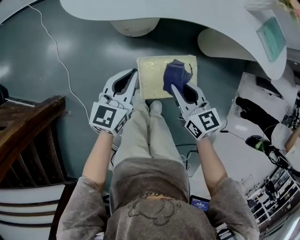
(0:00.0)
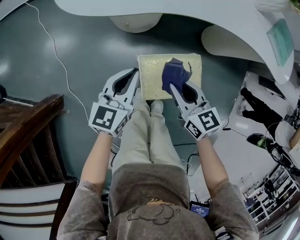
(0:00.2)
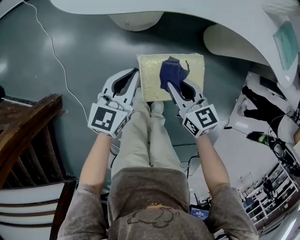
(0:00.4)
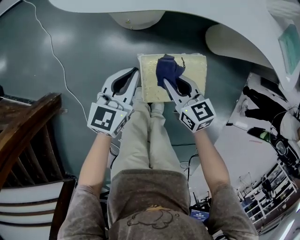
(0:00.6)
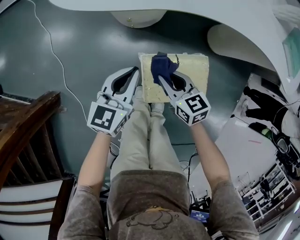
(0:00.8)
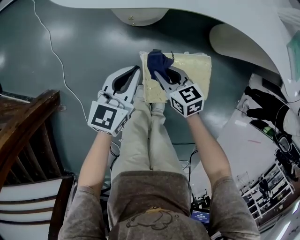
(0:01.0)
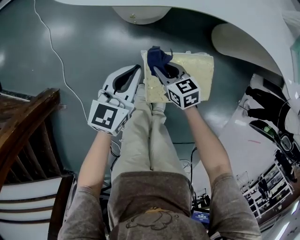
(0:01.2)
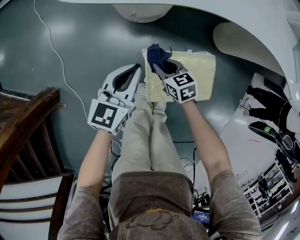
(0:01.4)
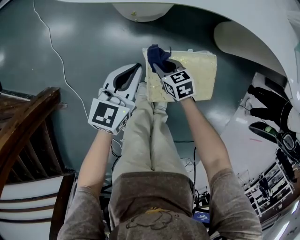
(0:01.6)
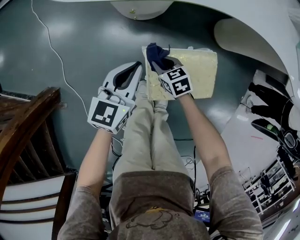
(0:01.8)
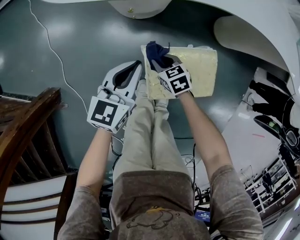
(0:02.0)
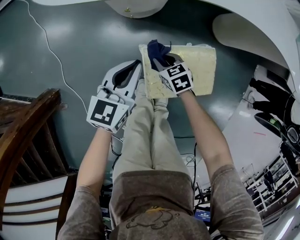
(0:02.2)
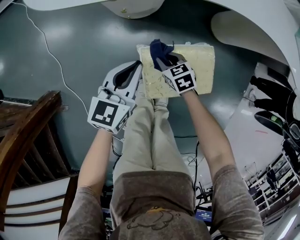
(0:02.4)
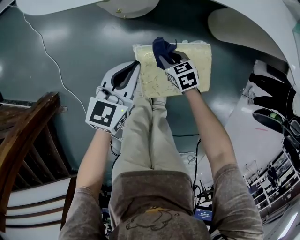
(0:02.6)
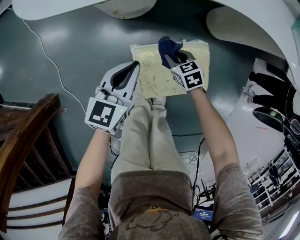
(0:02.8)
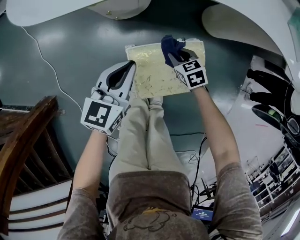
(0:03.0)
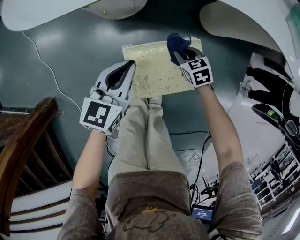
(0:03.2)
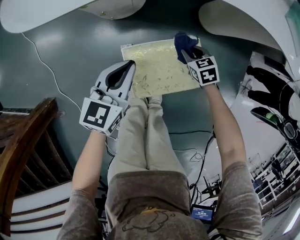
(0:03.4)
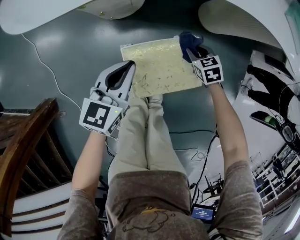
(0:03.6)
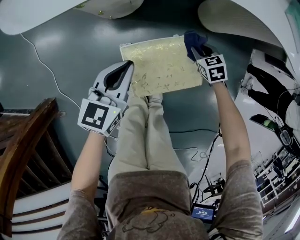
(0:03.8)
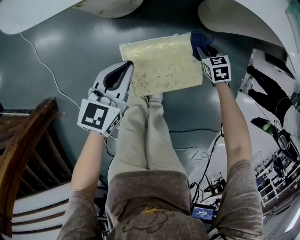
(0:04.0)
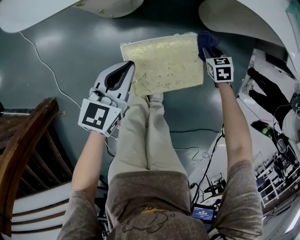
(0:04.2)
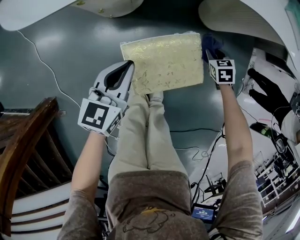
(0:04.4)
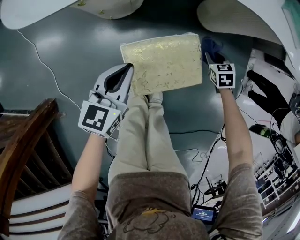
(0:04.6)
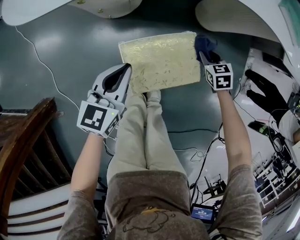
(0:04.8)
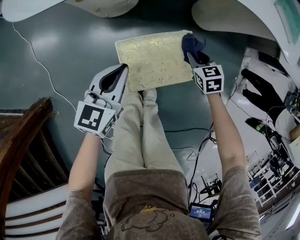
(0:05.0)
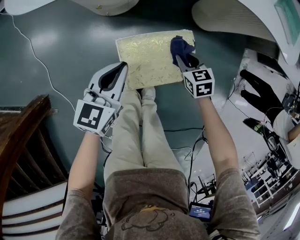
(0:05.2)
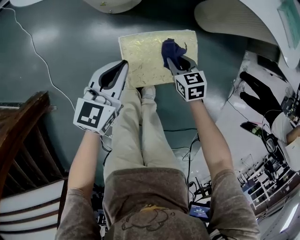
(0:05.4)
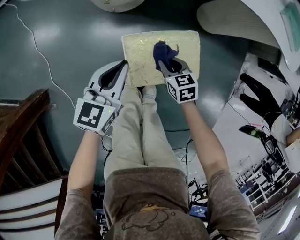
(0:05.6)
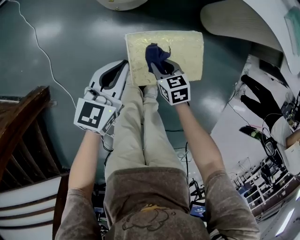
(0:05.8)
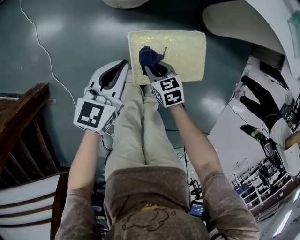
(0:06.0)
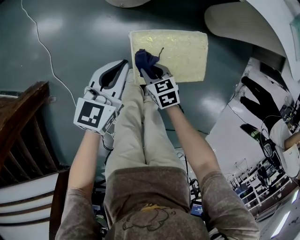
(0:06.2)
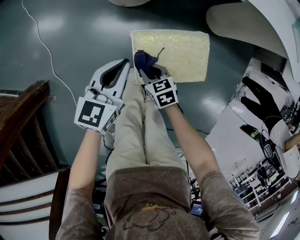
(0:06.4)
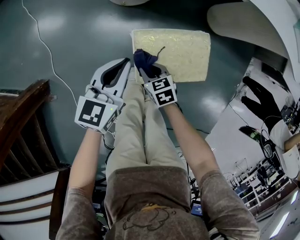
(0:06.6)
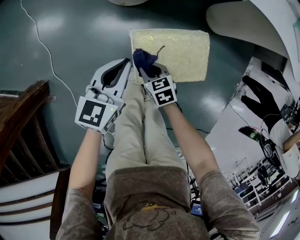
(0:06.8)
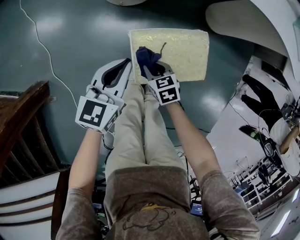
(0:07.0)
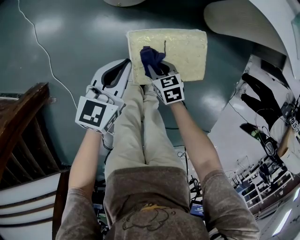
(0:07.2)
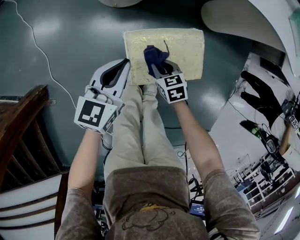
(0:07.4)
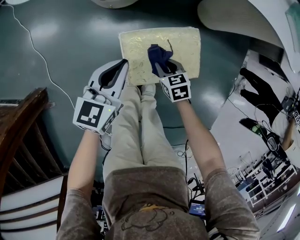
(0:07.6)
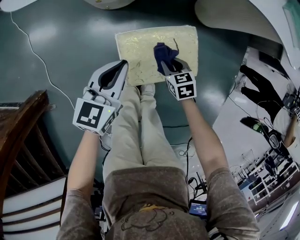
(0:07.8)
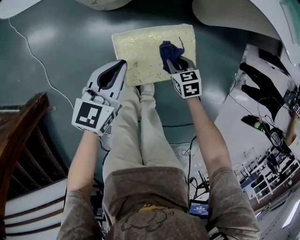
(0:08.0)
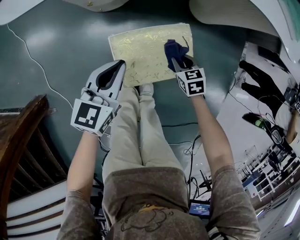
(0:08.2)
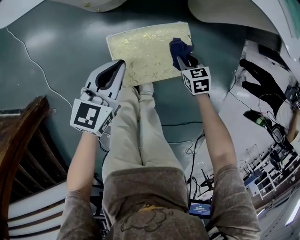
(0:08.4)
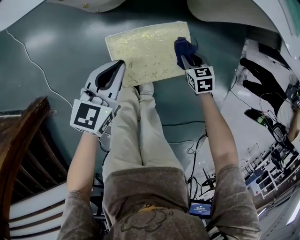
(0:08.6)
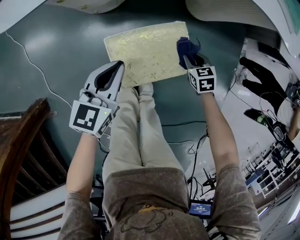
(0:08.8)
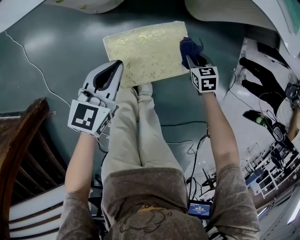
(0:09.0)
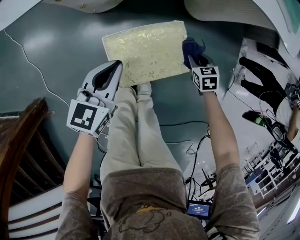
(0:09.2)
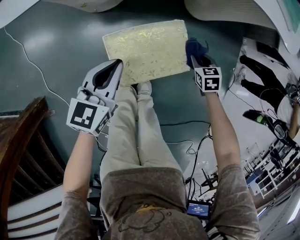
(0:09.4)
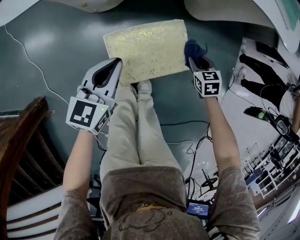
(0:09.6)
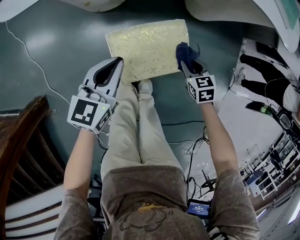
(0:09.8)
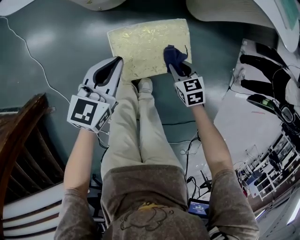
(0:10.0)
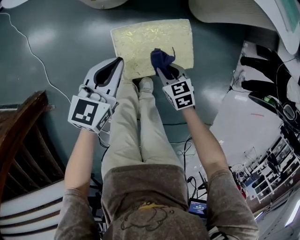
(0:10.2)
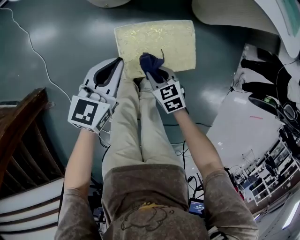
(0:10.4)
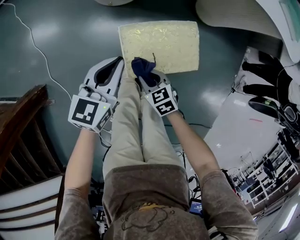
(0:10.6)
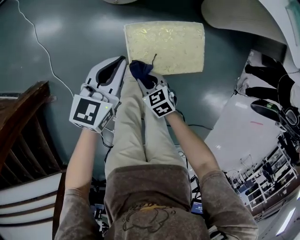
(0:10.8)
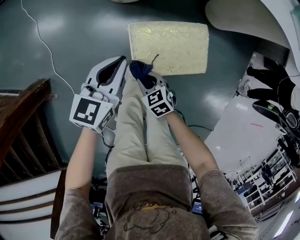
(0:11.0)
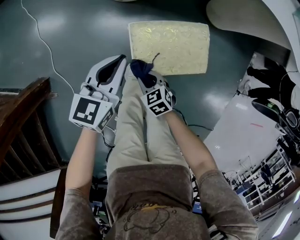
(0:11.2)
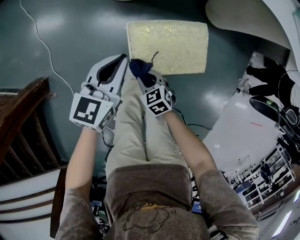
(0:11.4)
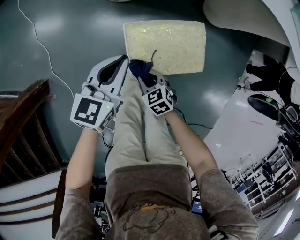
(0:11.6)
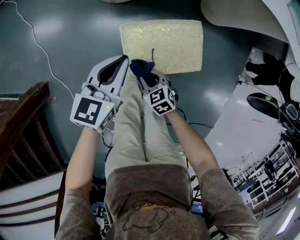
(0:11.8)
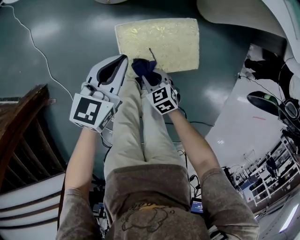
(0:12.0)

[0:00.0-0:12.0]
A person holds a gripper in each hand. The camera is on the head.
0:00.0 to 0:01.6: The left gripper heads downward, covering roughly 15 cm. Meanwhile the right gripper goes approximately 30 cm downward, and rotates some 30 degrees.
0:01.6 to 0:03.0: The right gripper is displaced to the right by approximately 15 cm, while the left gripper shifts some 5 cm to the right.
0:03.0 to 0:04.4: The right gripper goes approximately 20 cm to the right, and turns by some 20 degrees.
0:04.4 to 0:06.0: The left gripper shifts about 5 cm backward, while the right gripper shifts approximately 30 cm to the left and backward, and swivels approximately 30 degrees.
0:06.0 to 0:07.6: The right gripper travels to the right by about 10 cm.
0:07.6 to 0:09.0: The right gripper goes about 20 cm to the right.
0:09.0 to 0:10.4: The right gripper shifts about 25 cm to the left and backward, and changes its angle by some 20 degrees.
0:10.4 to 0:12.0: The right gripper reaches about 10 cm to the left, then returns.

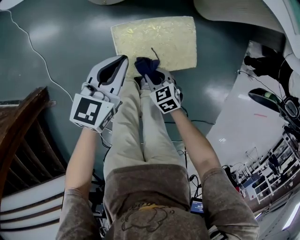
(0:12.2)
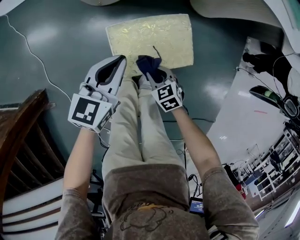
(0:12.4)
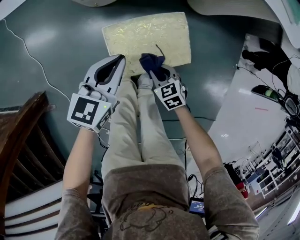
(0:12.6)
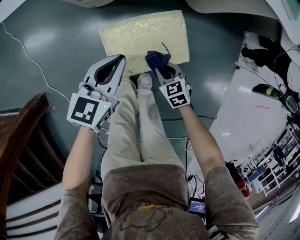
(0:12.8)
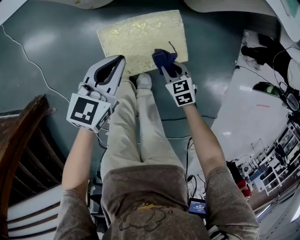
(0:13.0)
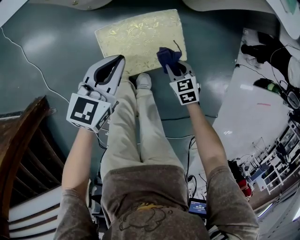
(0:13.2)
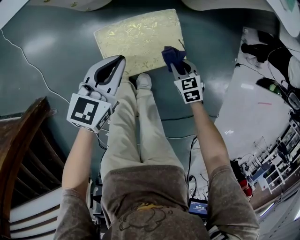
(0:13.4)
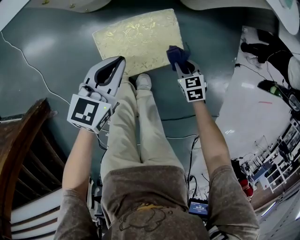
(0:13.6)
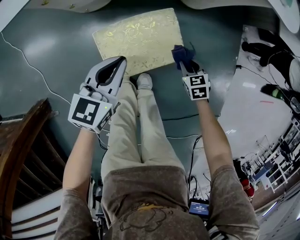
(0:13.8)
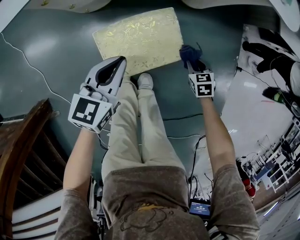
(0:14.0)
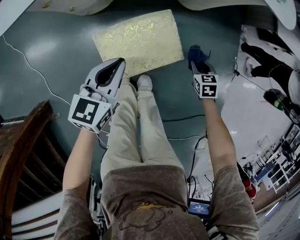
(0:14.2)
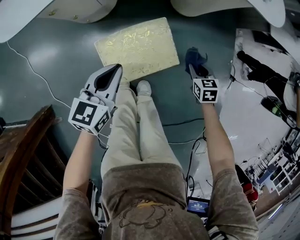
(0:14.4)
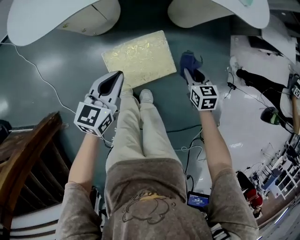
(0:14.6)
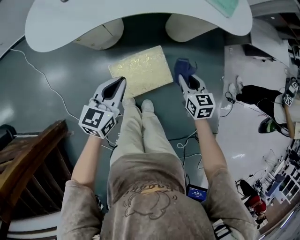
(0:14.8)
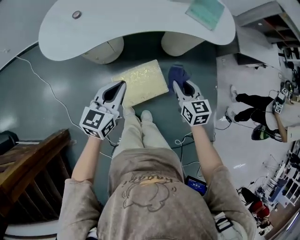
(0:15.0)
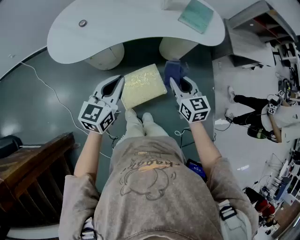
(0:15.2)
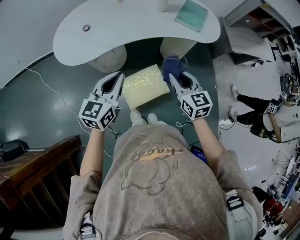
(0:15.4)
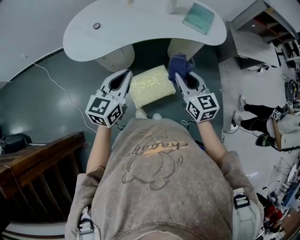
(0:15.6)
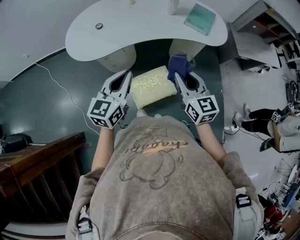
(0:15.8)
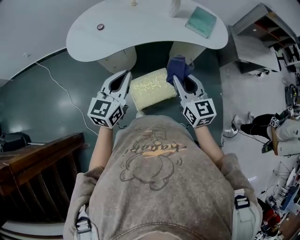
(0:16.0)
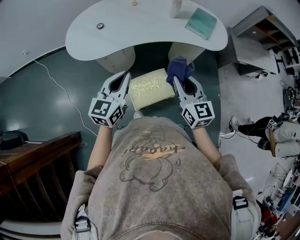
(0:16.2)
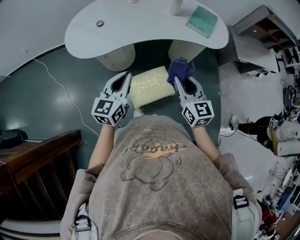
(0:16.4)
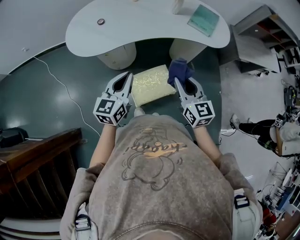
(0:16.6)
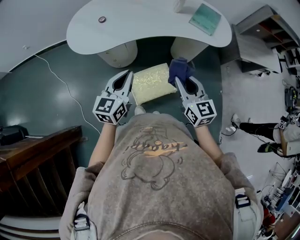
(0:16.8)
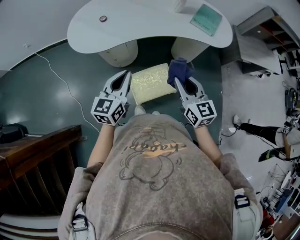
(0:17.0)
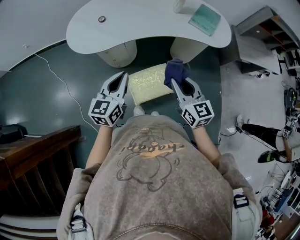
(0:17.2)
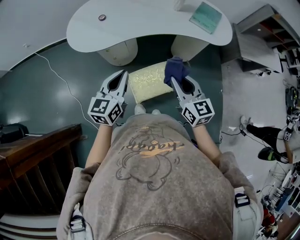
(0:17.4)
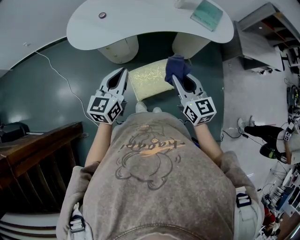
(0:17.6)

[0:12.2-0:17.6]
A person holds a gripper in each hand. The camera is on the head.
0:12.2 to 0:13.6: The left gripper moves to the right, about 5 cm. The right gripper moves to the right, approximately 20 cm.
0:13.6 to 0:15.0: Both grippers travel together upward, some 30 cm. The right gripper rotates some 30 degrees.
0:15.0 to 0:16.2: The right gripper moves upward, about 20 cm, and turns by roughly 20 degrees. Meanwhile the left gripper heads upward, covering about 10 cm.
0:16.2 to 0:17.6: The grippers move only a little.

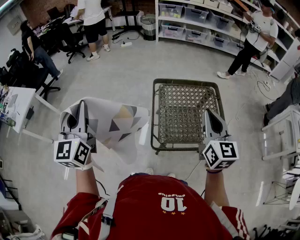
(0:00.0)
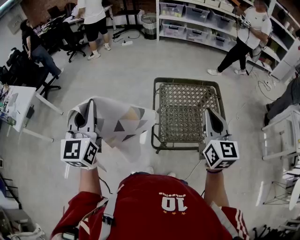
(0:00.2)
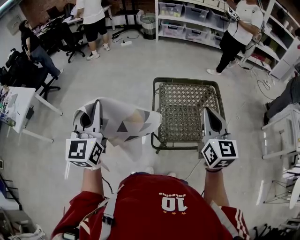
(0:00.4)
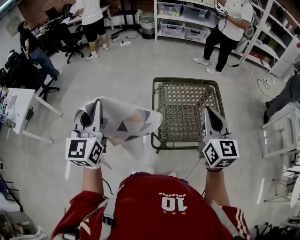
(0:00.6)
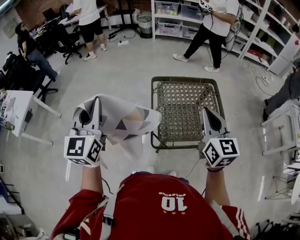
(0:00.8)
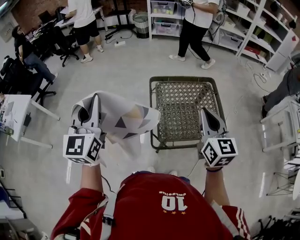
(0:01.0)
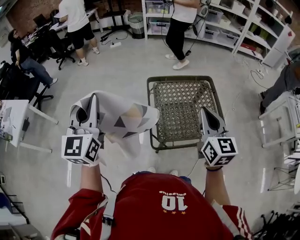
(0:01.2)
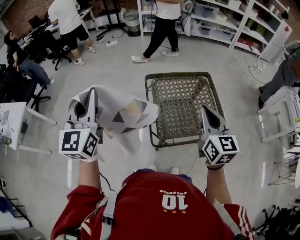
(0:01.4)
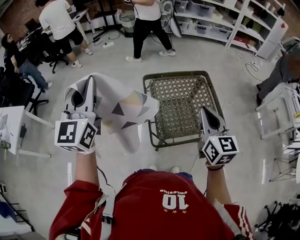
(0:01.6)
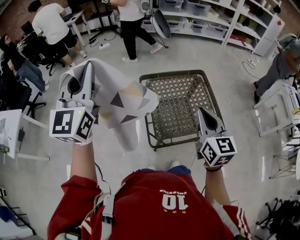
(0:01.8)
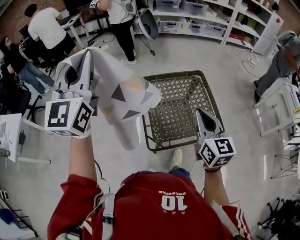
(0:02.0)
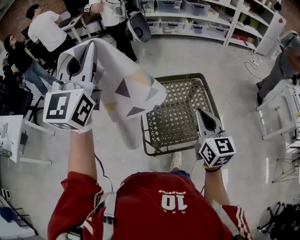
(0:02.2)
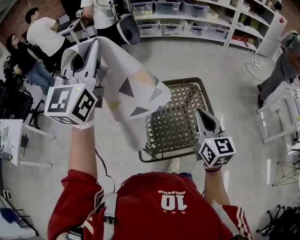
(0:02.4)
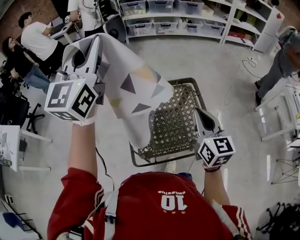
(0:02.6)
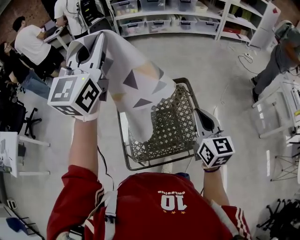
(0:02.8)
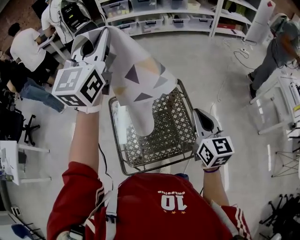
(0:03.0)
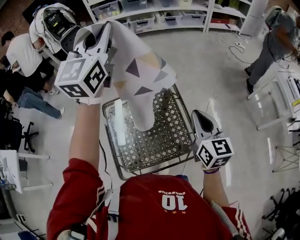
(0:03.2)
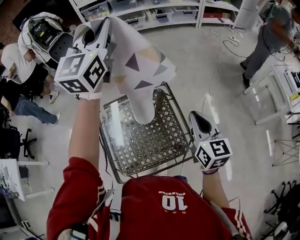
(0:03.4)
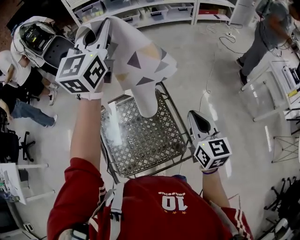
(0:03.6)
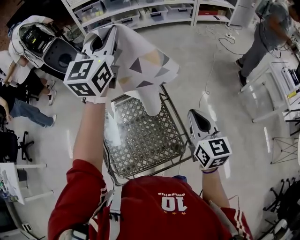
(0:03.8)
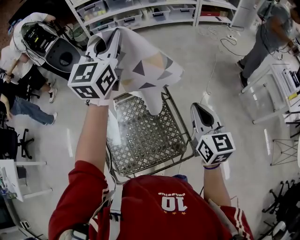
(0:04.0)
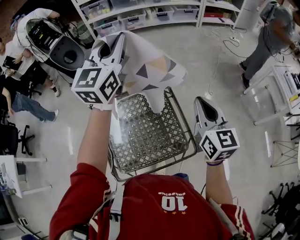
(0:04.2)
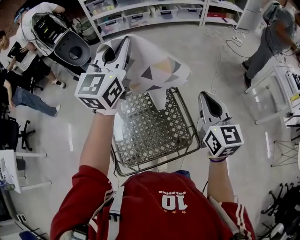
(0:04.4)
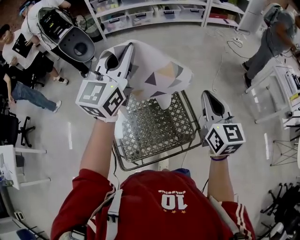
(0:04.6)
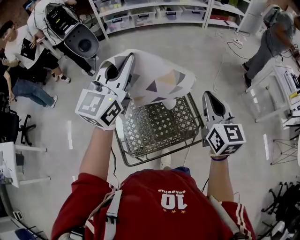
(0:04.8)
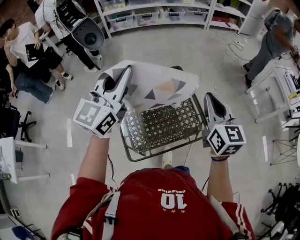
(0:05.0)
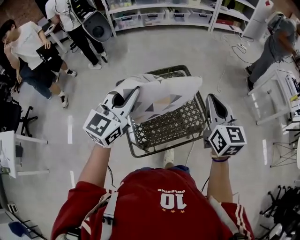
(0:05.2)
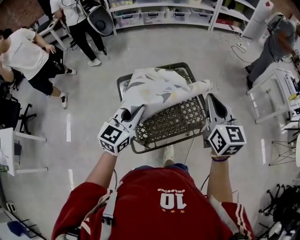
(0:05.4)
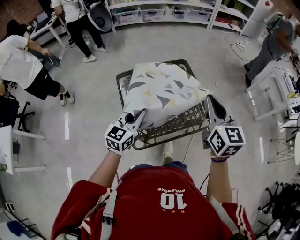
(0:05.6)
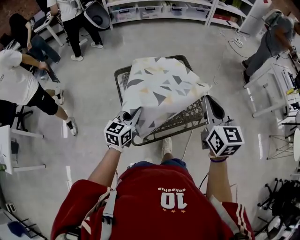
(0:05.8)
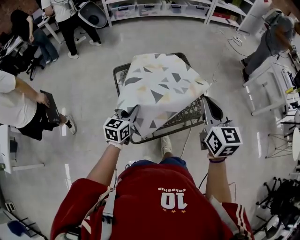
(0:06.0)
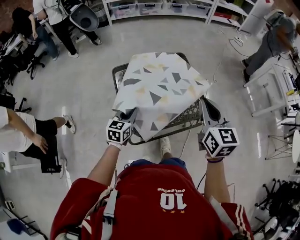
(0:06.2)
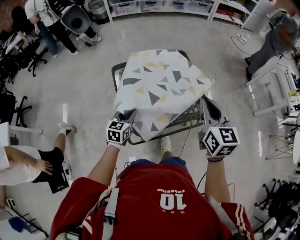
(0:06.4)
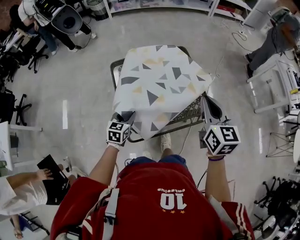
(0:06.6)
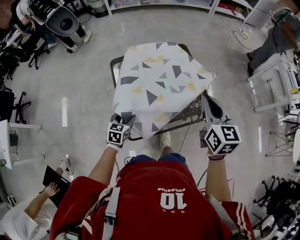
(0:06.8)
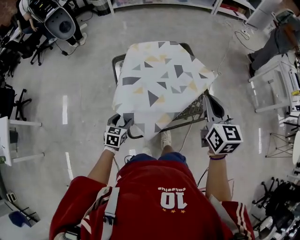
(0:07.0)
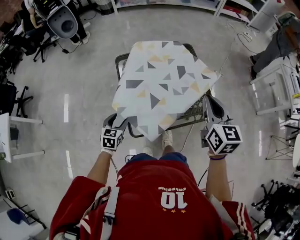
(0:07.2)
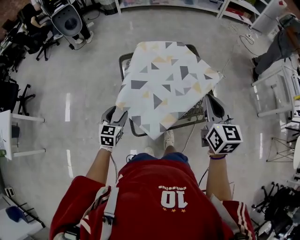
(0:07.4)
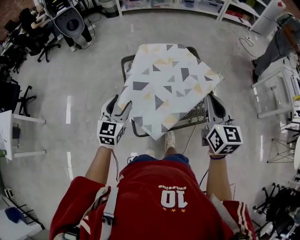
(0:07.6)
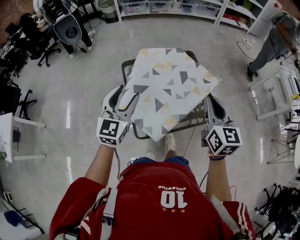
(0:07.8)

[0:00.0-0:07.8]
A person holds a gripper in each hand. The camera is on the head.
0:00.0 to 0:01.6: The left gripper goes roughly 10 cm forward and to the right.
0:01.6 to 0:03.2: The right gripper shifts about 30 cm to the right and forward; the left gripper travels forward and to the right by approximately 50 cm, and changes its angle by approximately 20 degrees.
0:03.2 to 0:04.6: The left gripper shifts some 15 cm downward, backward and to the right.
0:04.6 to 0:06.2: The right gripper moves backward and to the left, approximately 20 cm. Meanwhile the left gripper shifts about 50 cm downward and backward, and tilts its fingers some 40 degrees downward.
0:06.2 to 0:07.8: The left gripper heads upward, covering some 20 cm, swivels roughly 30 degrees, and opens its fingers.
